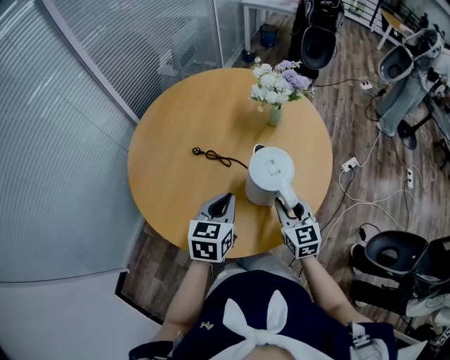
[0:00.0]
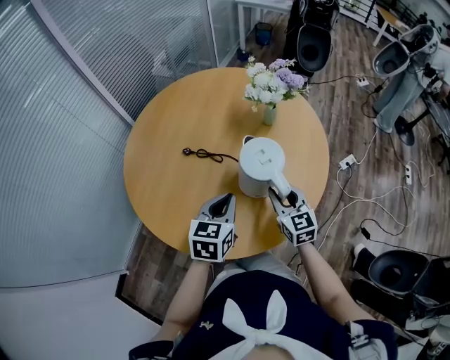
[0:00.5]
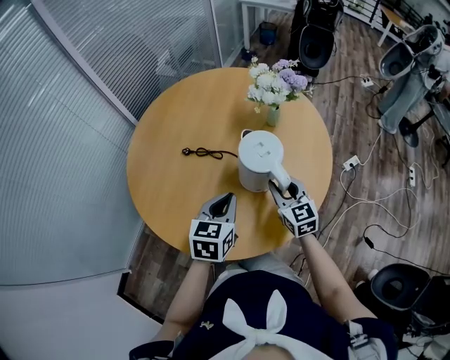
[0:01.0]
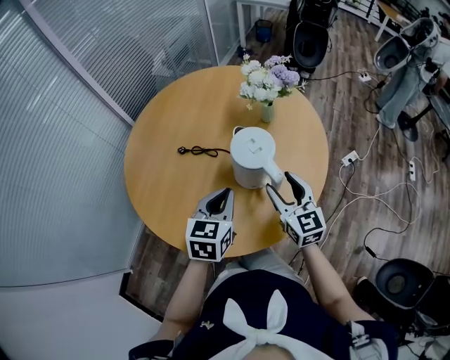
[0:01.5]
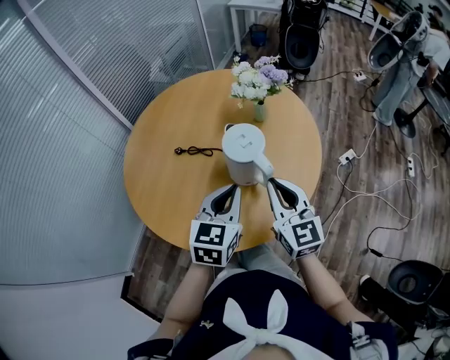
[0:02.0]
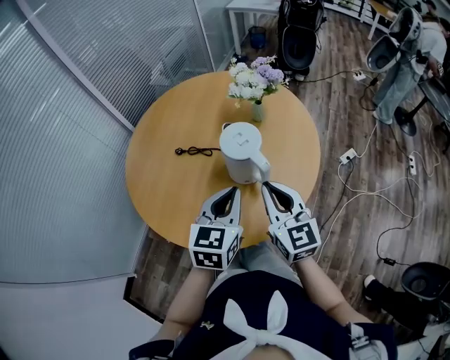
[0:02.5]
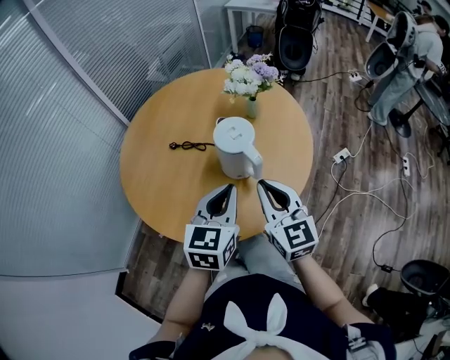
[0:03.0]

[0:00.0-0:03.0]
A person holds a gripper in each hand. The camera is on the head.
0:00.0 to 0:01.5: The right gripper heads upward, covering approximately 5 cm, and opens up.
0:01.5 to 0:03.0: The right gripper shifts about 10 cm upward and backward, and closes its fingers. The left gripper travels upward, backward and to the right by about 10 cm.

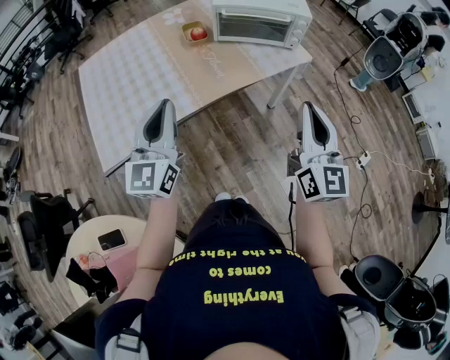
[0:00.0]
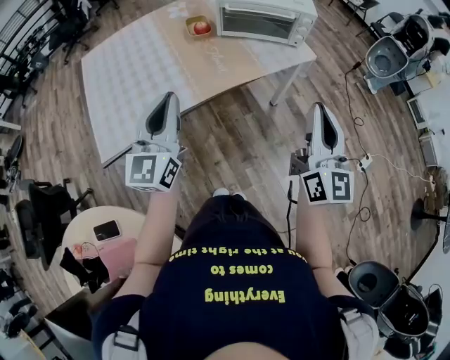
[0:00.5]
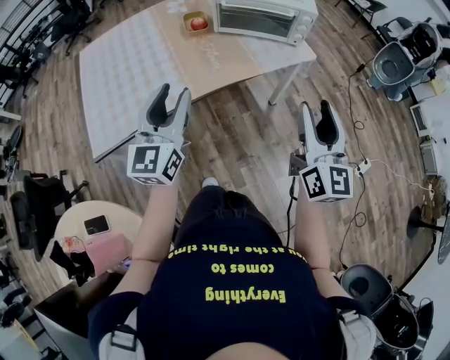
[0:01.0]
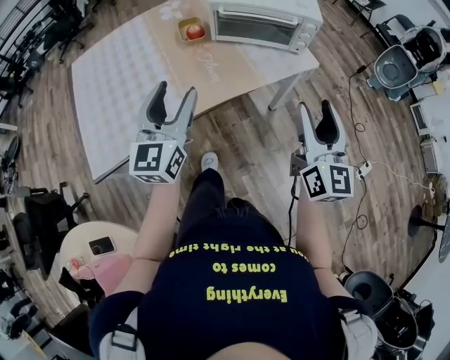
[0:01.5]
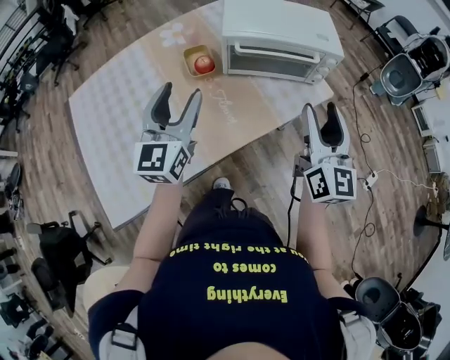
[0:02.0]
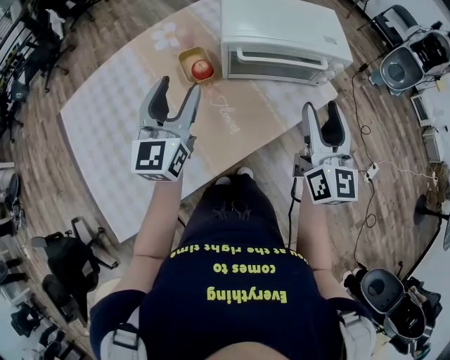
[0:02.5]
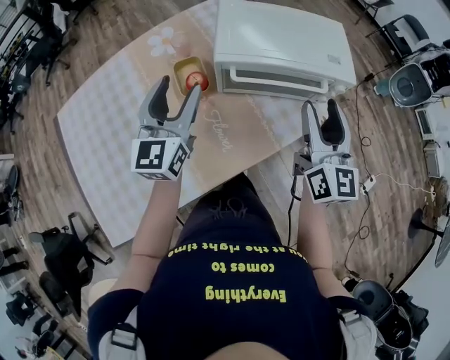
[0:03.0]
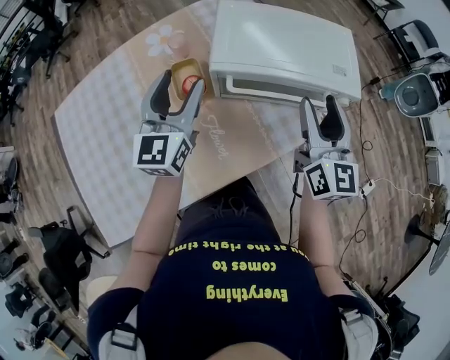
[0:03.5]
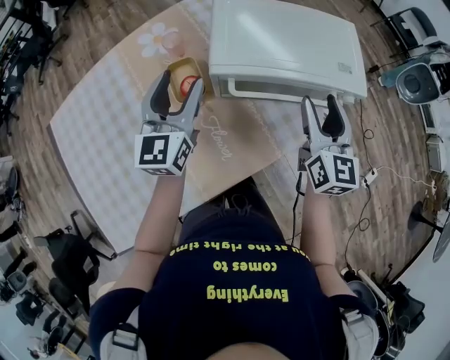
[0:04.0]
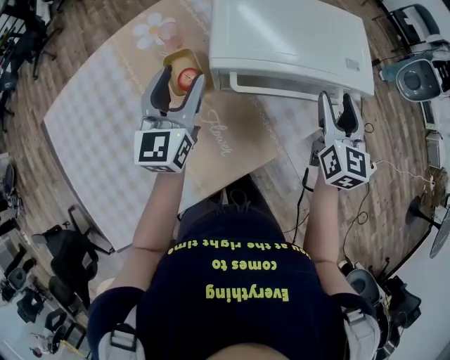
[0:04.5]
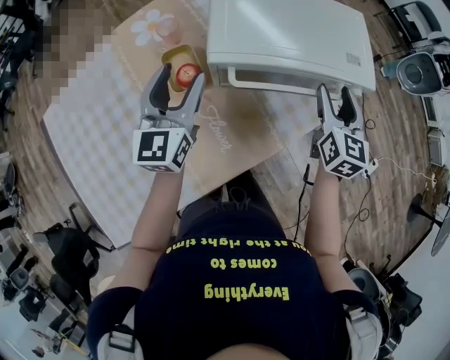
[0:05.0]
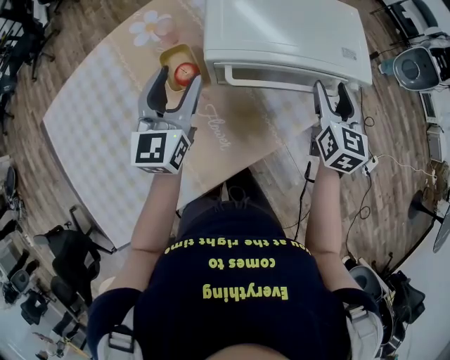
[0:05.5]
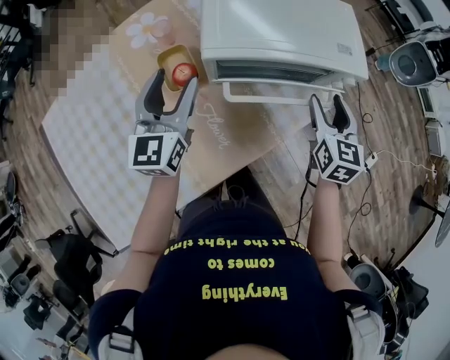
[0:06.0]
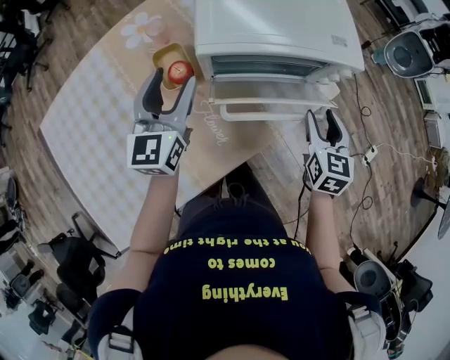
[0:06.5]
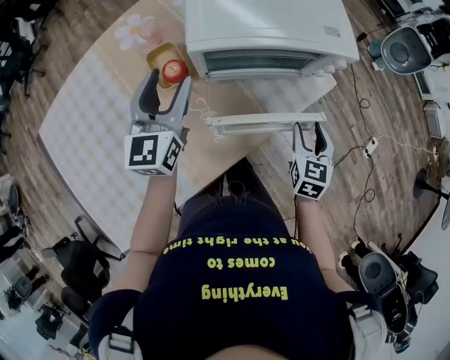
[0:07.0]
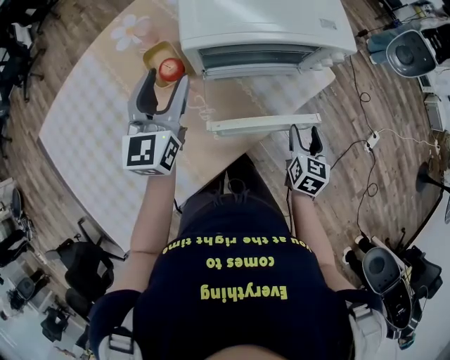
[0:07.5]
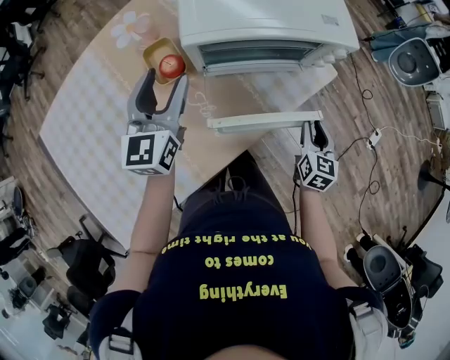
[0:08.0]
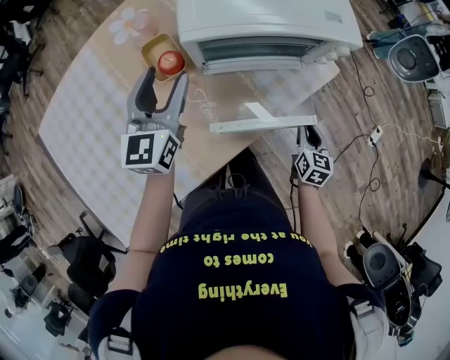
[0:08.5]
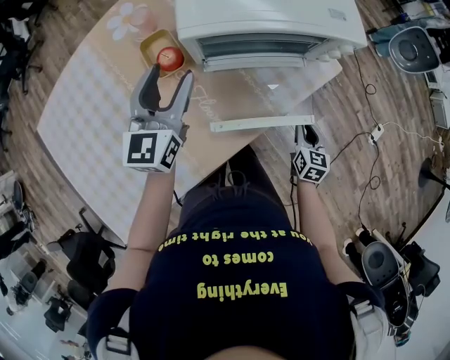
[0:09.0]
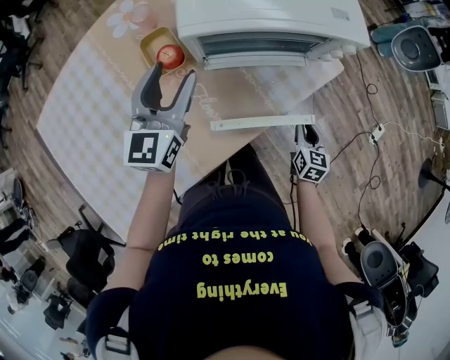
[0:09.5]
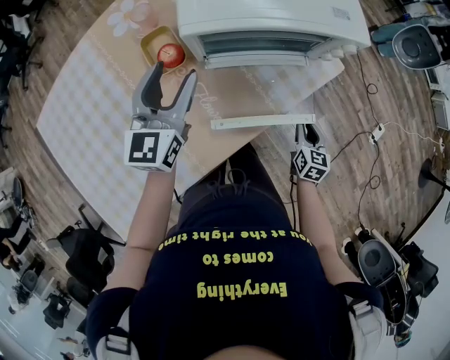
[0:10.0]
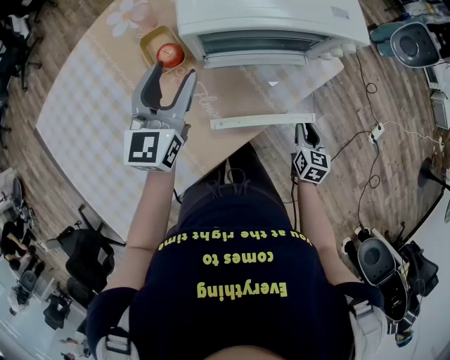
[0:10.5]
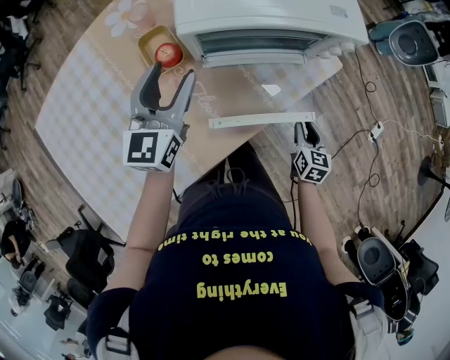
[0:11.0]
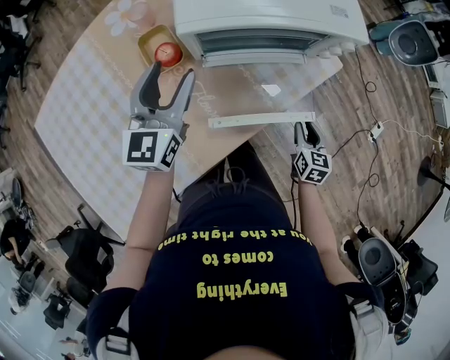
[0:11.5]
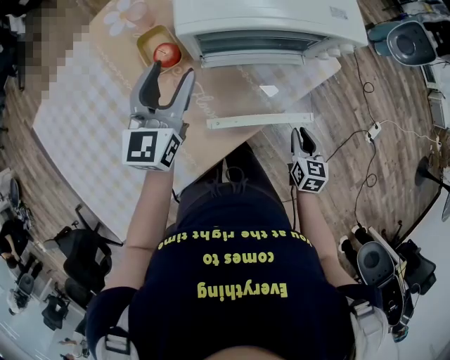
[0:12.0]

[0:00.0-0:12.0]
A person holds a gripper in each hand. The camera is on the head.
0:00.0 to 0:02.0: Both grippers move forward, roughly 30 cm. The left gripper opens its fingers. The right gripper opens its fingers.
0:02.0 to 0:04.0: Both grippers move forward, roughly 25 cm.
0:04.0 to 0:06.0: The right gripper shifts roughly 10 cm downward and to the right.
0:06.0 to 0:08.0: The right gripper goes about 20 cm downward, backward and to the right, and closes up.
0:08.0 to 0:10.0: The right gripper travels downward by approximately 10 cm.
0:10.0 to 0:12.0: The grippers stay close to where they were, moving slightly.

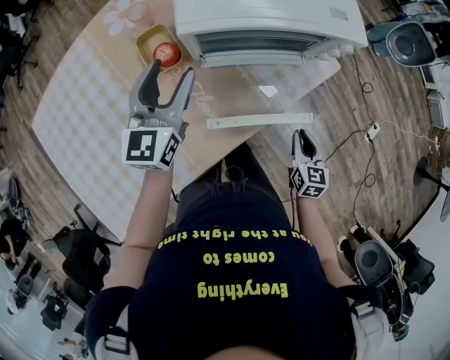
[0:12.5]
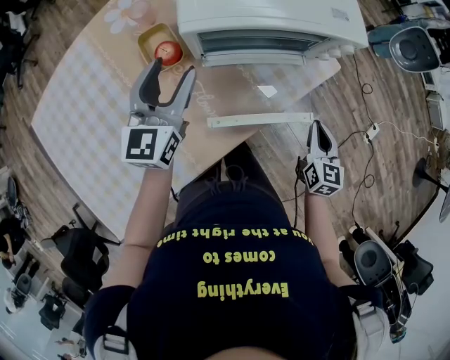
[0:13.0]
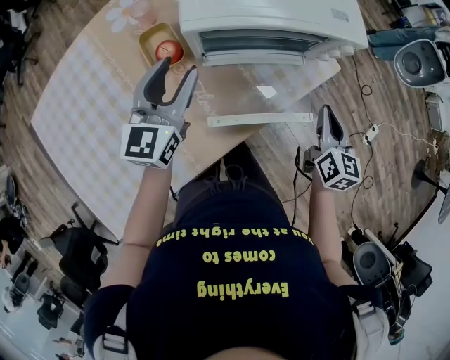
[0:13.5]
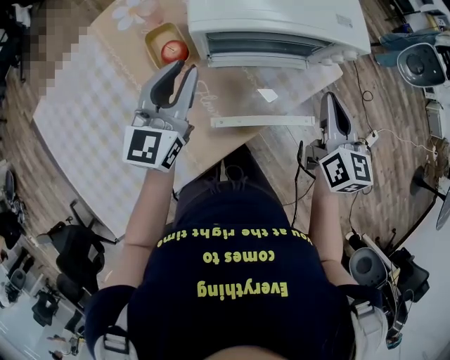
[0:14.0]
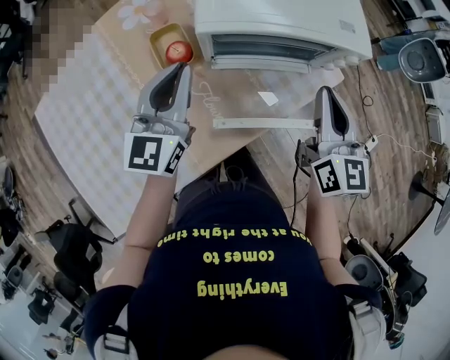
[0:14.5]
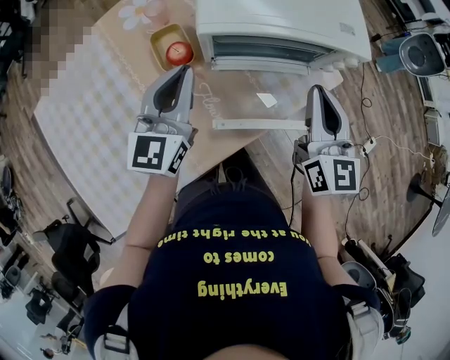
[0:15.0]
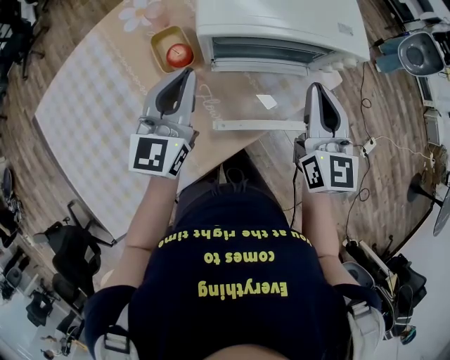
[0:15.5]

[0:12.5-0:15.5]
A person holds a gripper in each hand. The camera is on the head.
0:12.5 to 0:14.0: The right gripper moves upward and forward, roughly 25 cm, and swivels about 20 degrees; the left gripper closes its fingers.
0:14.0 to 0:15.5: The right gripper shifts roughly 5 cm to the left.

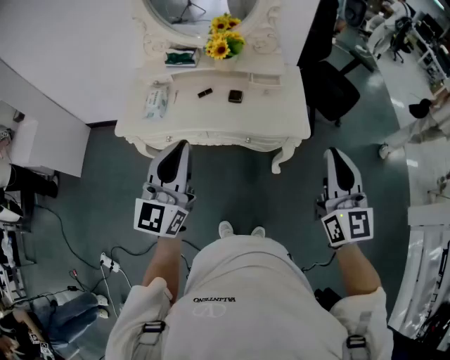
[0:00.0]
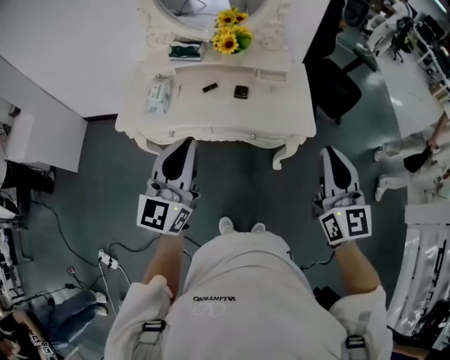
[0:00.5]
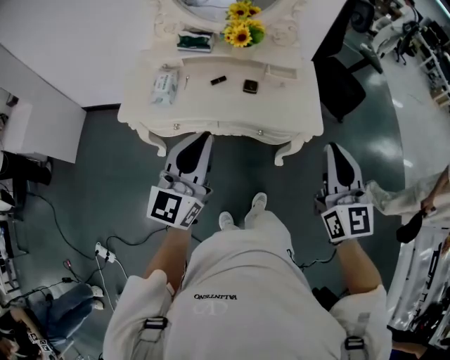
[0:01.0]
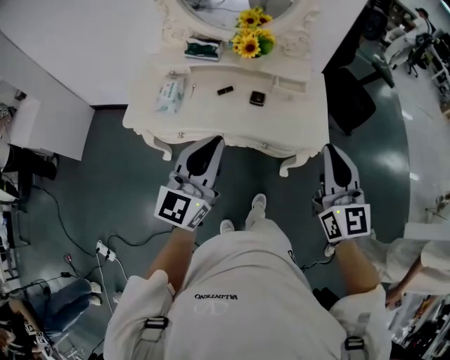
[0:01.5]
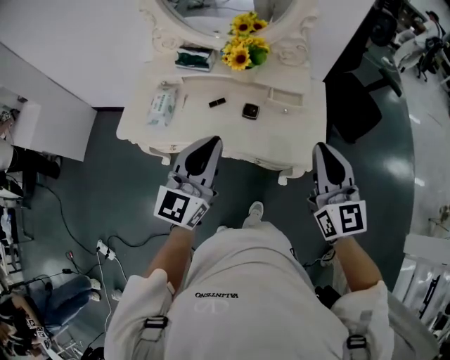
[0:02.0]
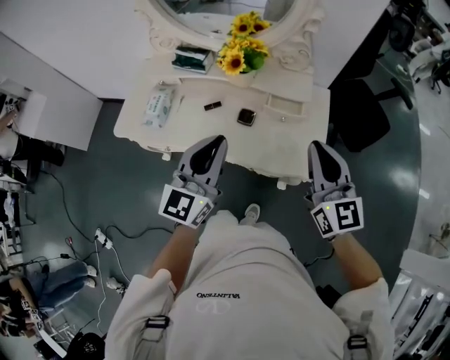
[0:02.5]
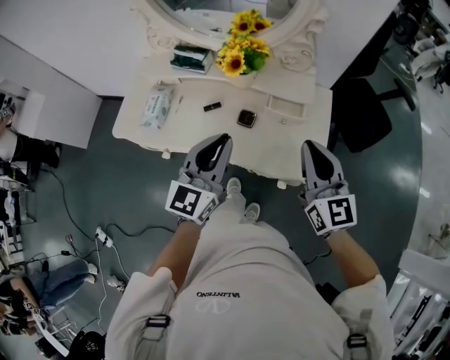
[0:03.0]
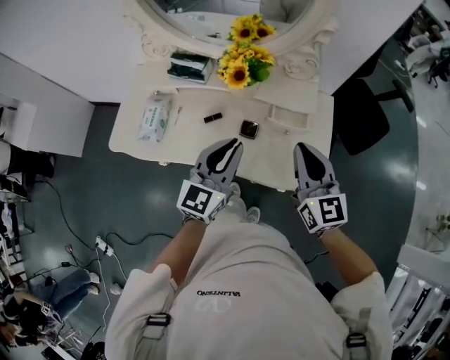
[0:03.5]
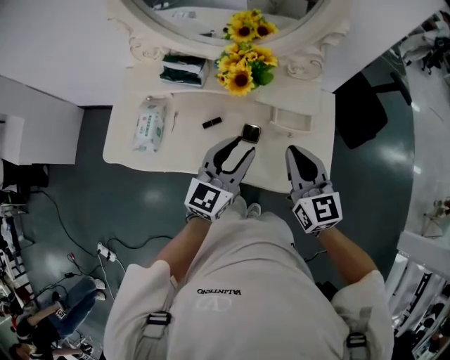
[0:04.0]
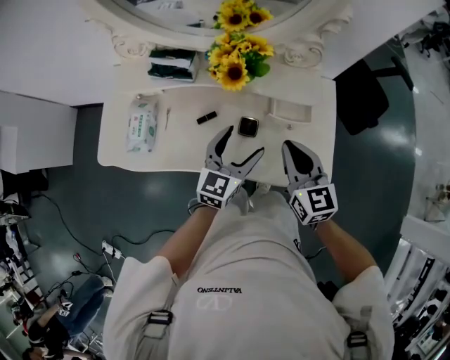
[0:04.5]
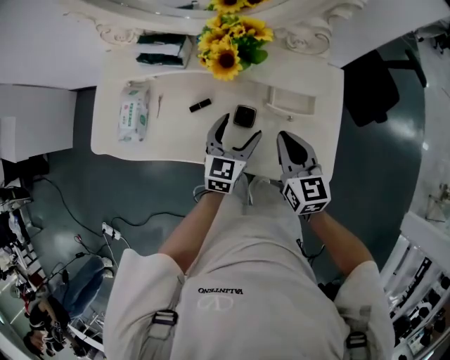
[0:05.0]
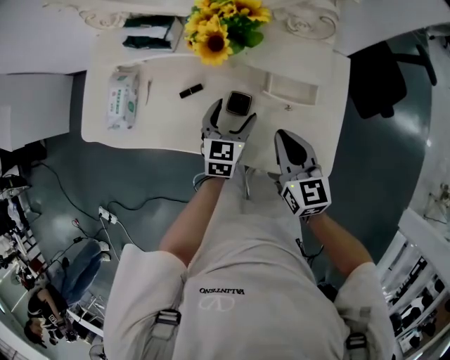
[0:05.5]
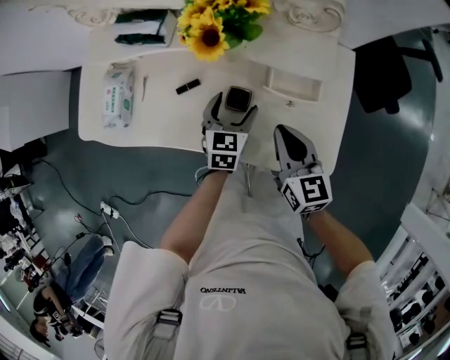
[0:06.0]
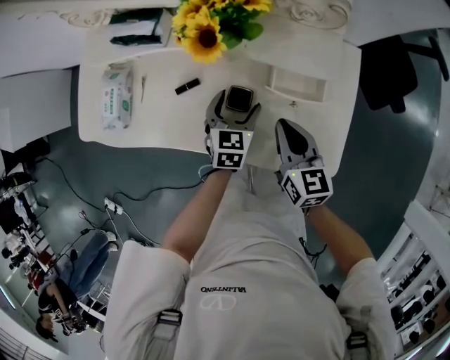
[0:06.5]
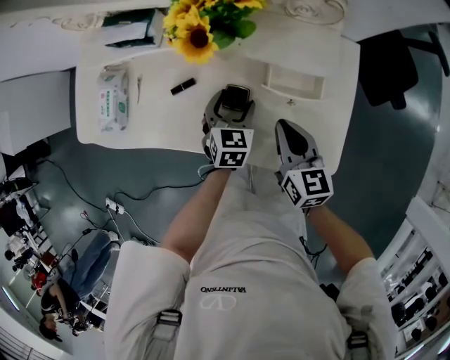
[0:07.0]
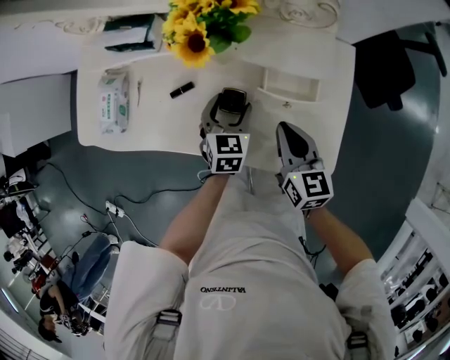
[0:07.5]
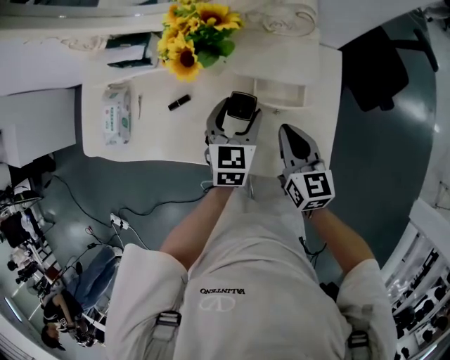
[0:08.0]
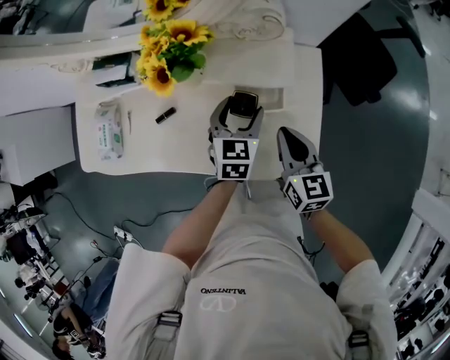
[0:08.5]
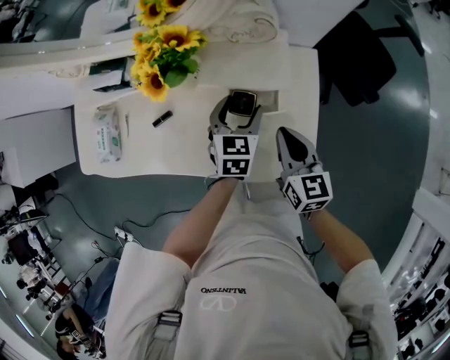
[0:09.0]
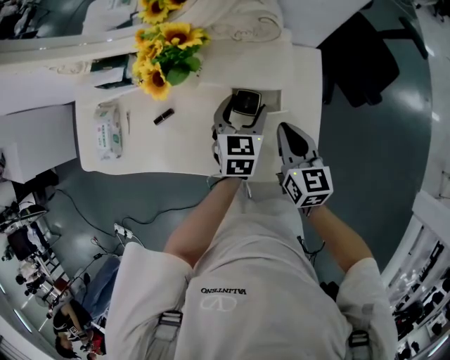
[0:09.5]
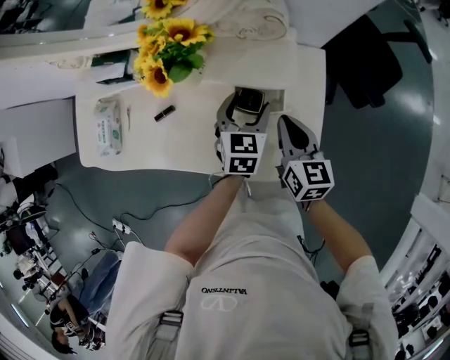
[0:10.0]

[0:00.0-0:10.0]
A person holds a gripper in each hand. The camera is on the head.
0:00.0 to 0:02.0: The grippers both shift forward by approximately 15 cm.
0:02.0 to 0:04.0: The two grippers go about 20 cm forward and downward.
0:04.0 to 0:06.0: The right gripper goes some 15 cm downward. Meanwhile the left gripper heads downward, covering roughly 25 cm, tips its fingers downward by about 30 degrees, and opens up.
0:06.0 to 0:08.0: The right gripper heads to the right, covering roughly 5 cm, while the left gripper is displaced upward and to the right by approximately 10 cm.
0:08.0 to 0:10.0: Both grippers travel together to the right, about 5 cm.
